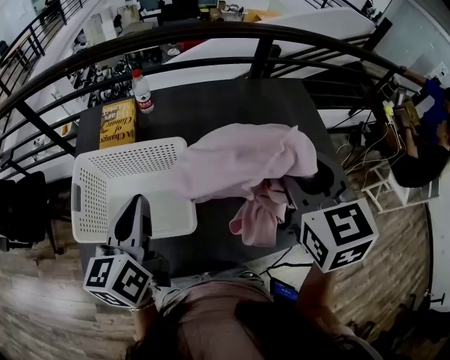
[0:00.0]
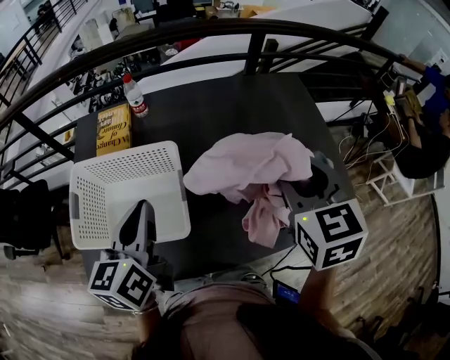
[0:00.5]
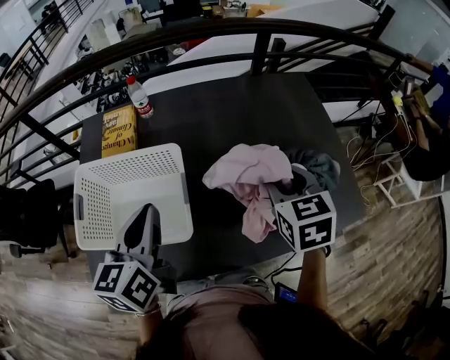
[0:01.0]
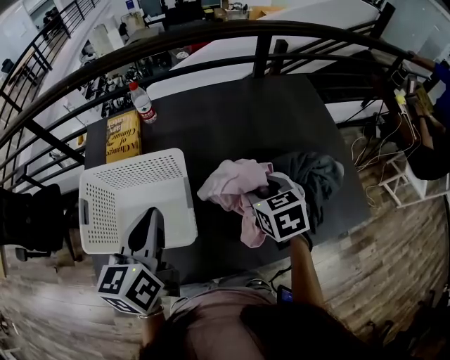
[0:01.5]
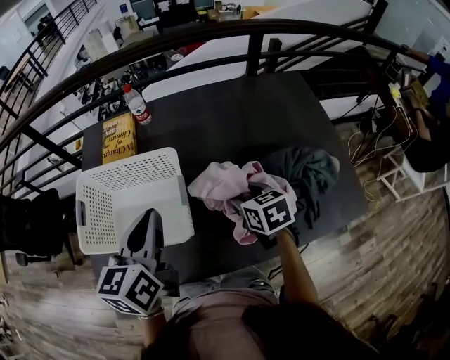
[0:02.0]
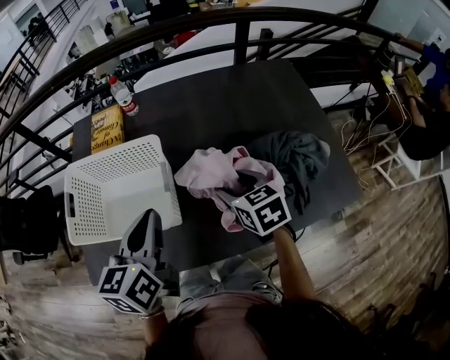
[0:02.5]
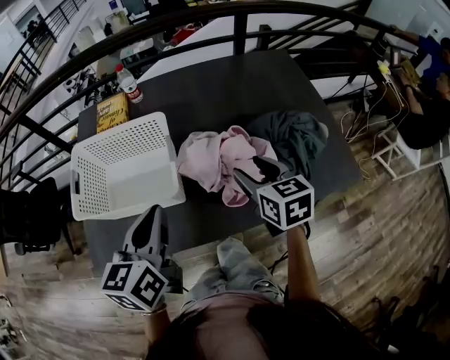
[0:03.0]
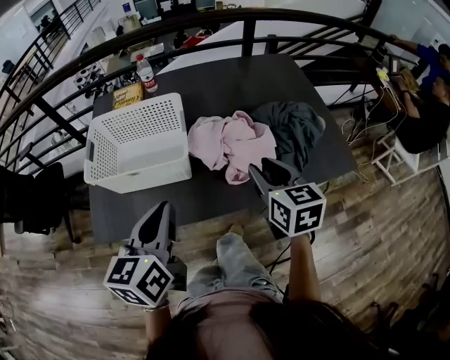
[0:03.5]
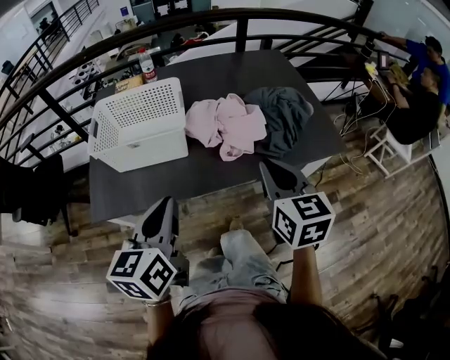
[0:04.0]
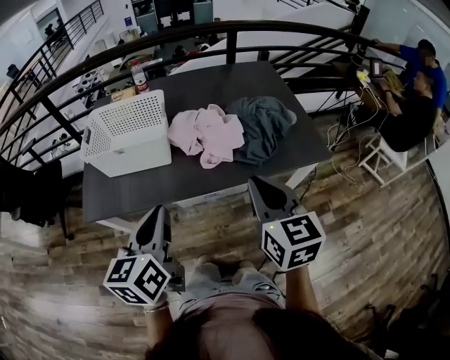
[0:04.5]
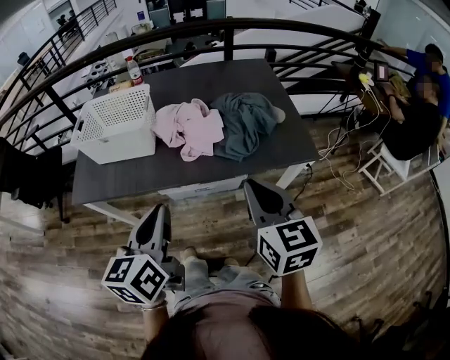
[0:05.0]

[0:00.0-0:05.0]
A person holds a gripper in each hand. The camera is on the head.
0:00.0 to 0:02.5: The right gripper is displaced downward by approximately 20 cm, and changes its angle by approximately 30 degrees. The left gripper moves to the right, approximately 10 cm.
0:02.5 to 0:05.0: The right gripper moves backward, to the right and upward, some 40 cm, changes its angle by approximately 30 degrees, and closes its fingers; the left gripper shifts approximately 40 cm backward and to the right.

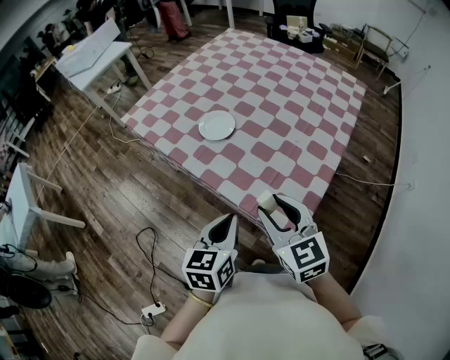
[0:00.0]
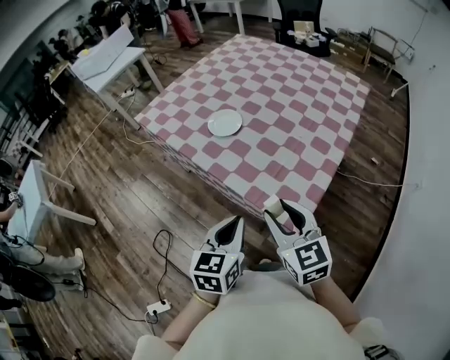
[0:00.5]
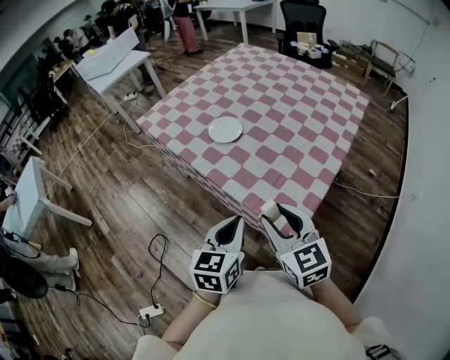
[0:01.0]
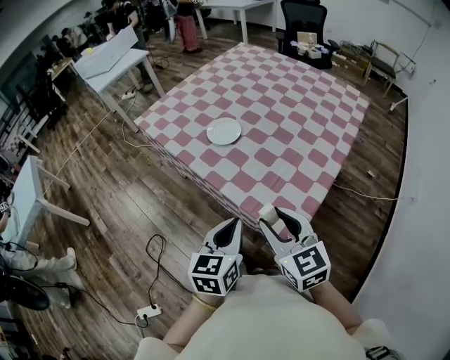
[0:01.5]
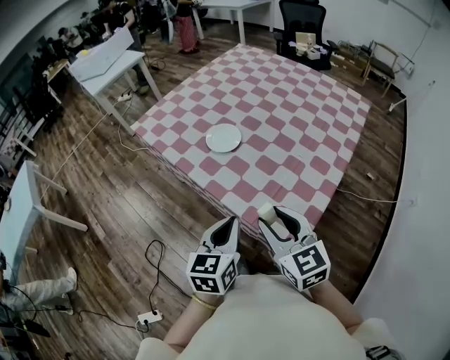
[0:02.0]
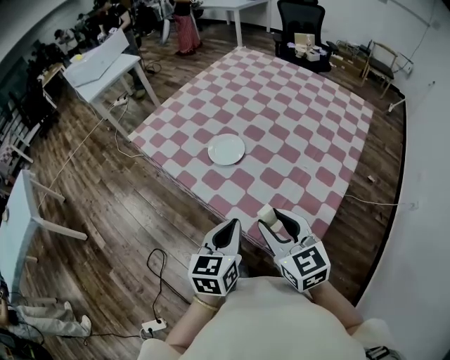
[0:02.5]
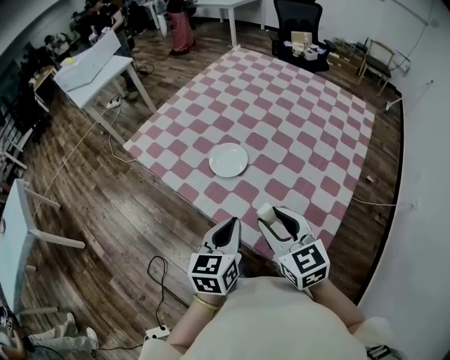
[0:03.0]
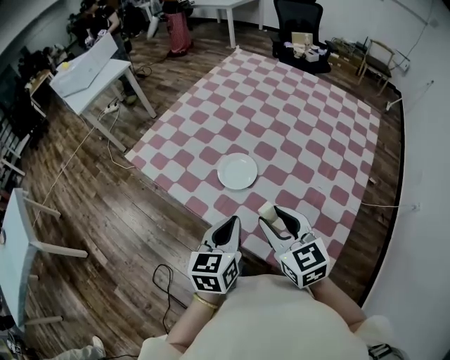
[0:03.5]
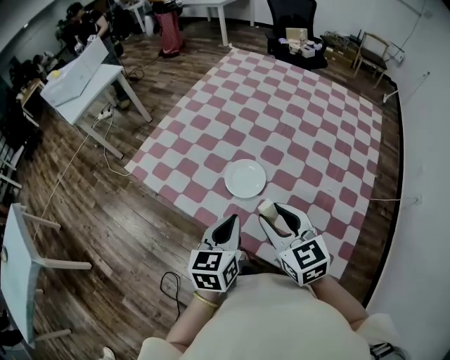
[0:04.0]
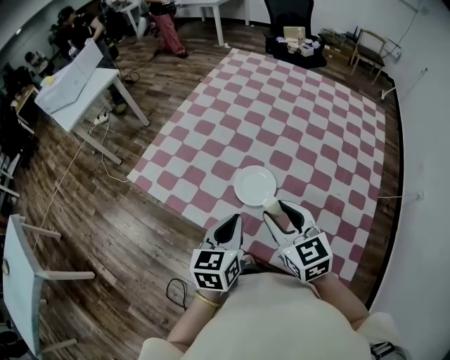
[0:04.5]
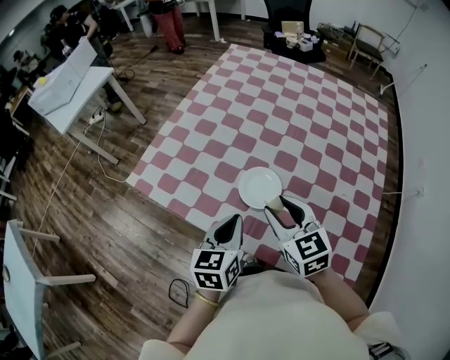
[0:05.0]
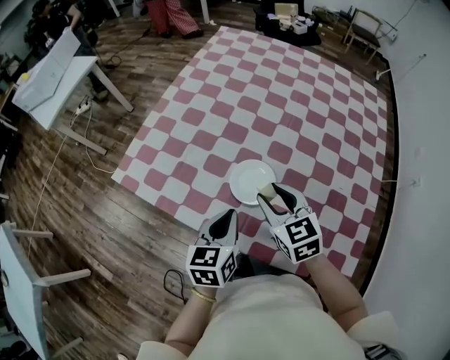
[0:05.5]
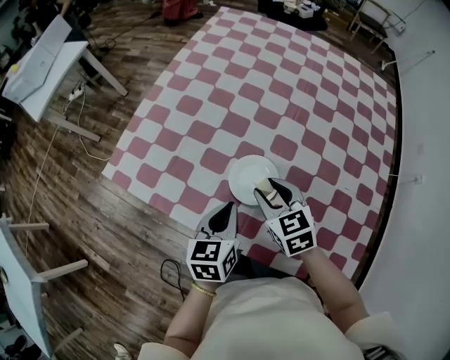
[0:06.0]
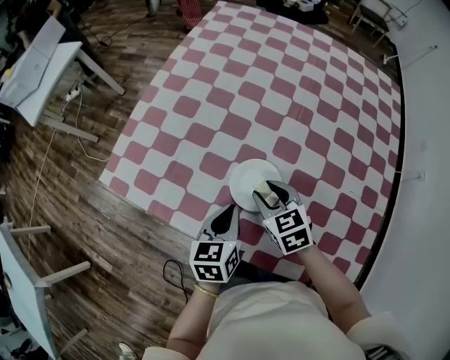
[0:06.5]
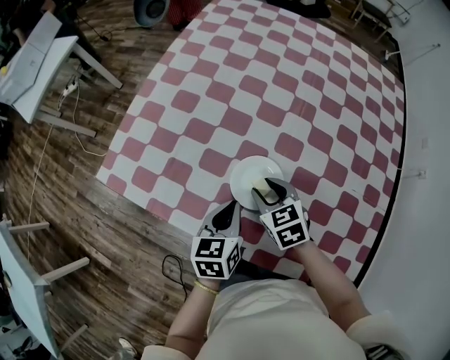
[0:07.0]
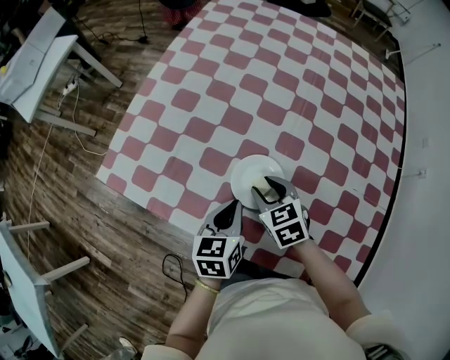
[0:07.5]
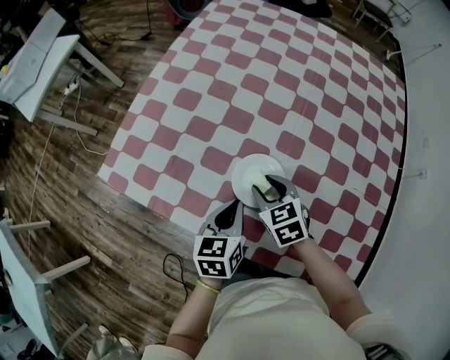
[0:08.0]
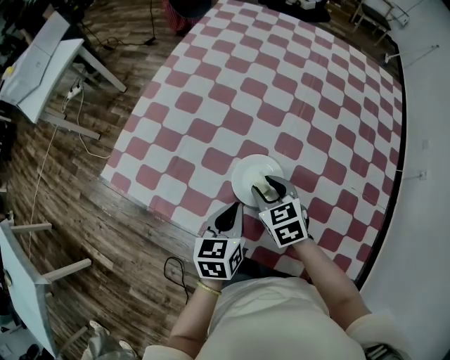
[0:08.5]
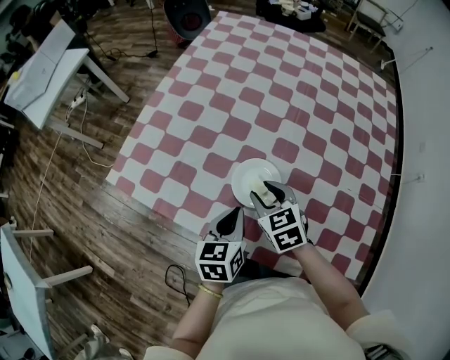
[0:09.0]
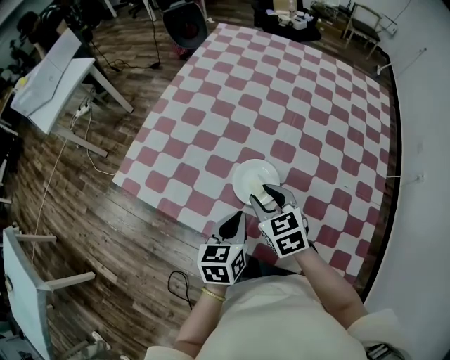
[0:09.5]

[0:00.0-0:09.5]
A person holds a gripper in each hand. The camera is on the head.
0:02.0 to 0:04.0: Both grippers move forward and to the left, approximately 25 cm.
0:04.0 to 0:05.5: The grippers both shift forward and downward by some 10 cm.
0:05.5 to 0:07.5: Both grippers travel together downward and forward, approximately 15 cm.
0:07.5 to 0:09.5: The right gripper travels upward by some 10 cm; the left gripper travels backward by roughly 5 cm.

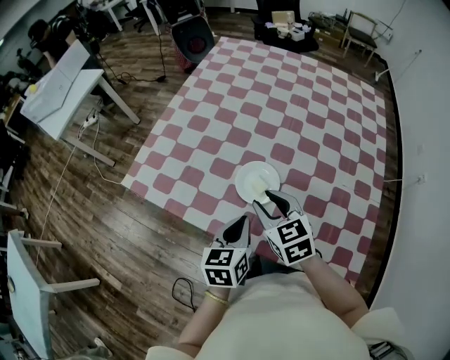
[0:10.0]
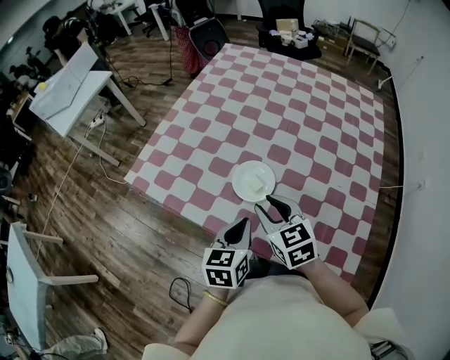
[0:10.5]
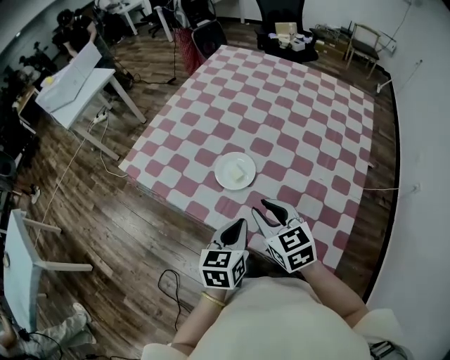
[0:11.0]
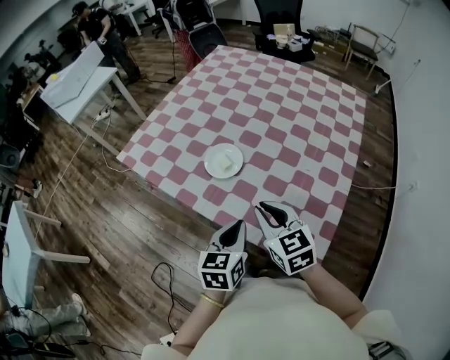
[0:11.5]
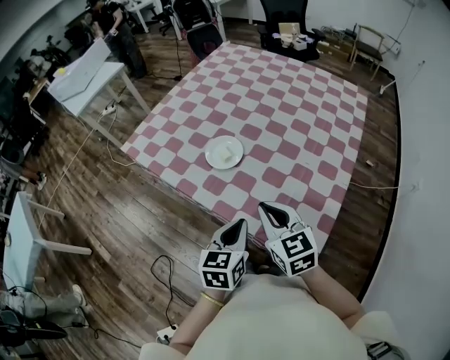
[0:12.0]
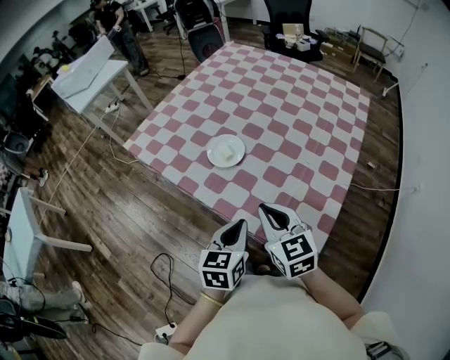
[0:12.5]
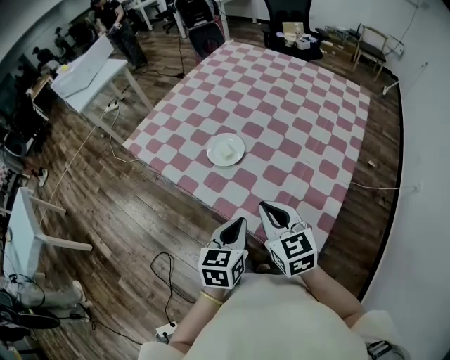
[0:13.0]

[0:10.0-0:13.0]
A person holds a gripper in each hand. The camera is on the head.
0:10.0 to 0:11.5: The two grippers go approximately 20 cm backward and to the right. The right gripper closes its fingers.
0:11.5 to 0:13.0: The grippers make only small movements.

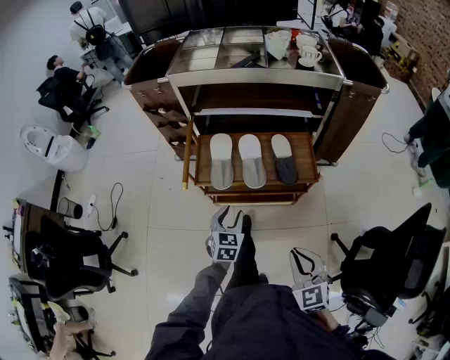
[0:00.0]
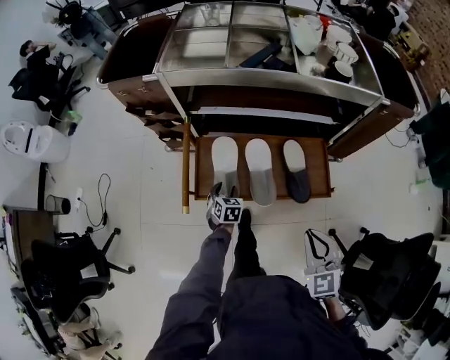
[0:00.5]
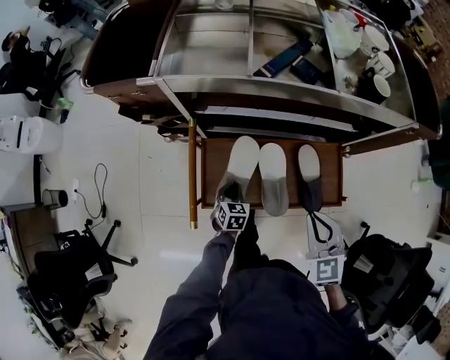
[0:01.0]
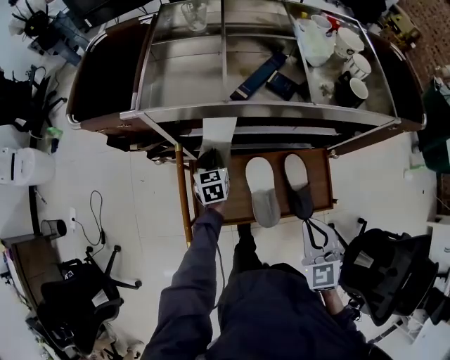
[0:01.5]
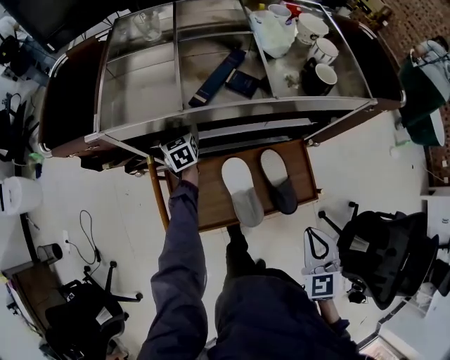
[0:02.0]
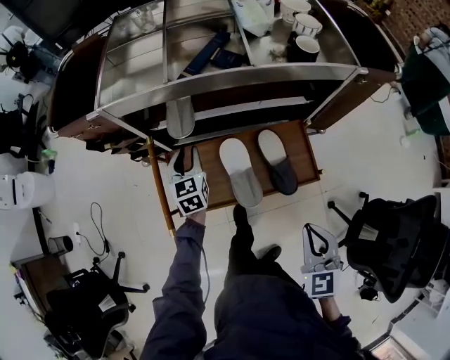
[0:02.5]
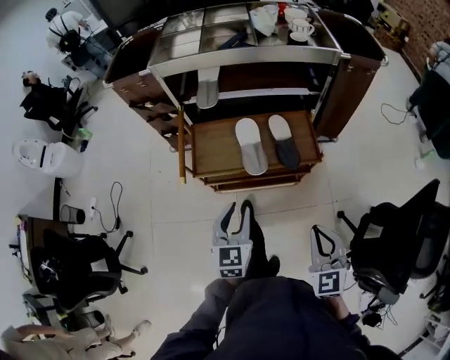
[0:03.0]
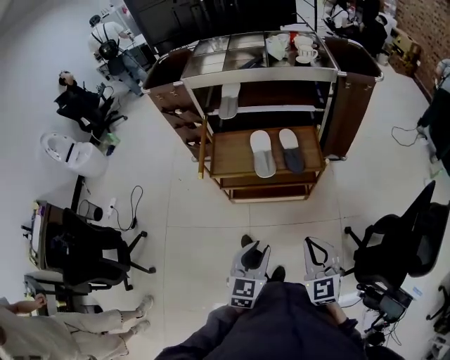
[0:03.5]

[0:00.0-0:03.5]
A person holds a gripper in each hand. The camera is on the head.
0:00.0 to 0:02.0: The left gripper moves forward, about 60 cm, and changes its angle by some 20 degrees. Meanwhile the right gripper heads forward, covering about 35 cm, and rotates about 20 degrees.
0:02.0 to 0:03.5: The left gripper shifts approximately 80 cm backward, and rotates approximately 20 degrees; the right gripper goes roughly 40 cm backward, and rotates approximately 20 degrees.

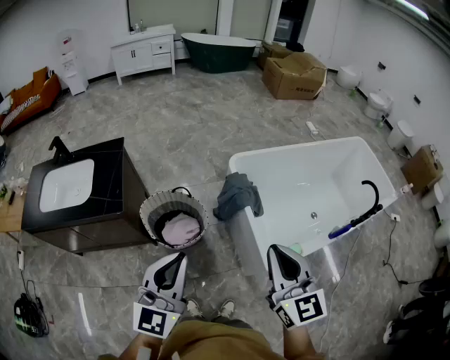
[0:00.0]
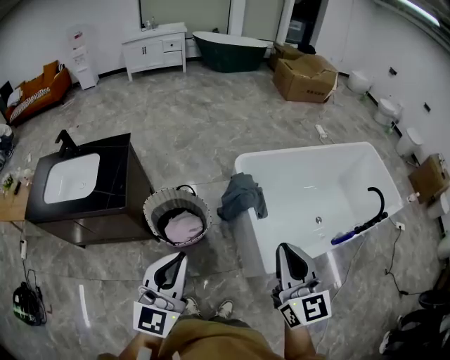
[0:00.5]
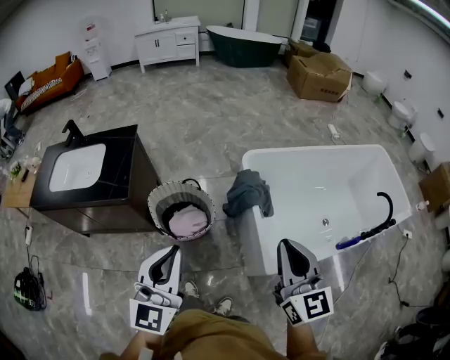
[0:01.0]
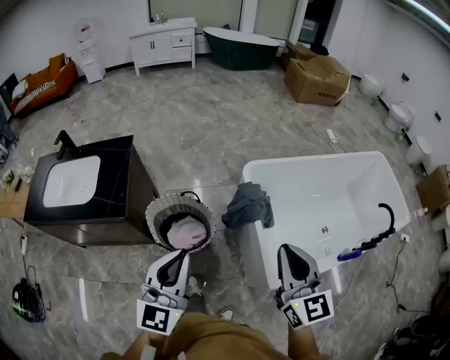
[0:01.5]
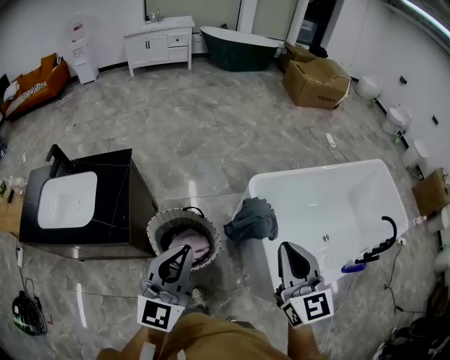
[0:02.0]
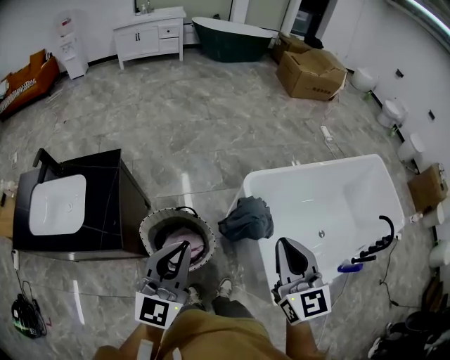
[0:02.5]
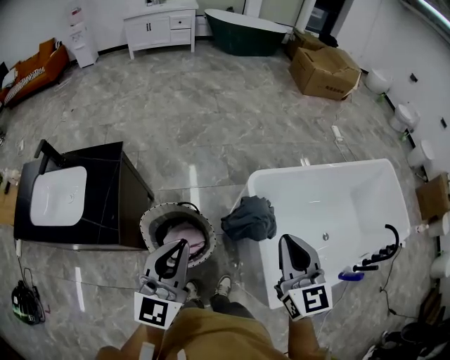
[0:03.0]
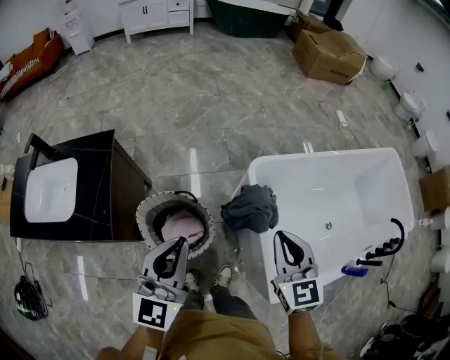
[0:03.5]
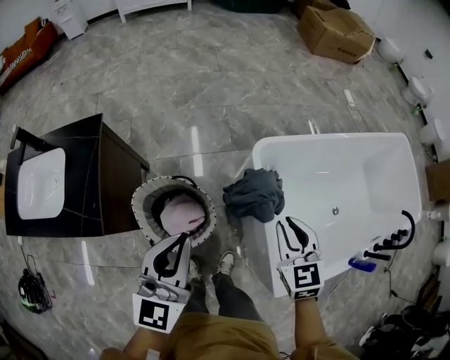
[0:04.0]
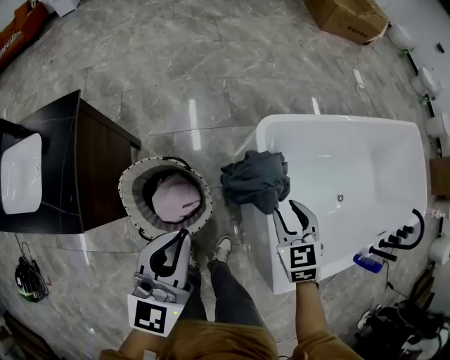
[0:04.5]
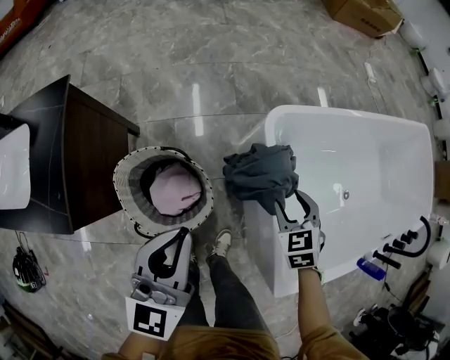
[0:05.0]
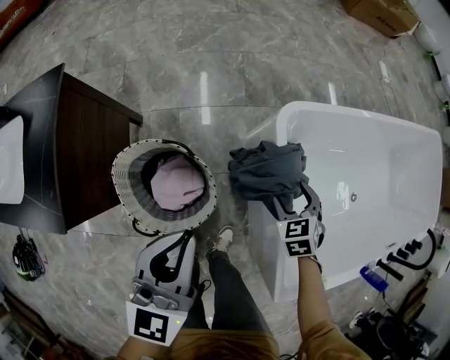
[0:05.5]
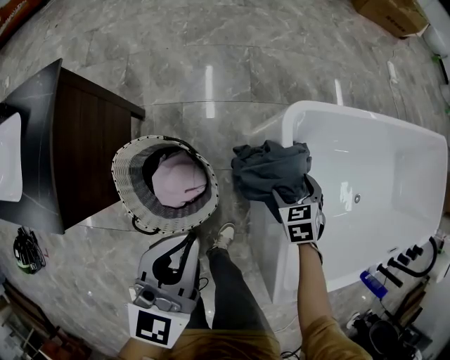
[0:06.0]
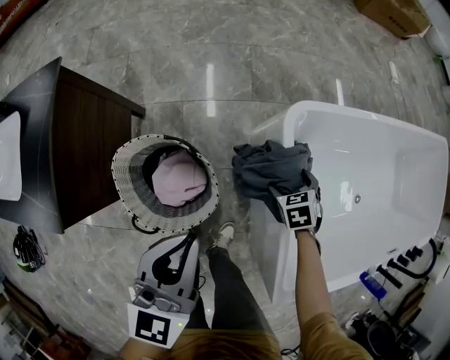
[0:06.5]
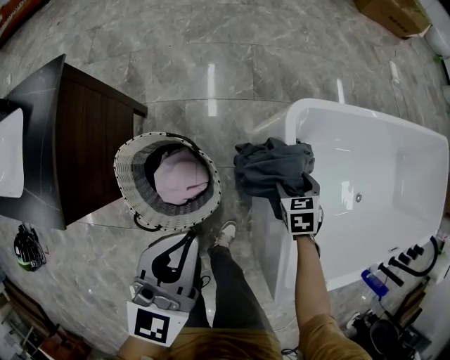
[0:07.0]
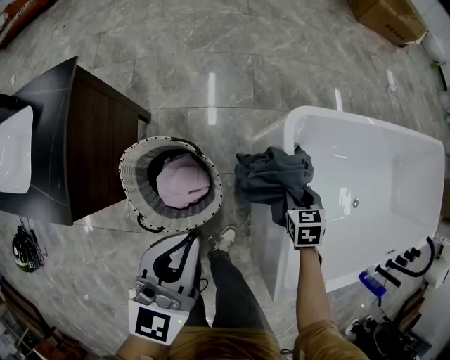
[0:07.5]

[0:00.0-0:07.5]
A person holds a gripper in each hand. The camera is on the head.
0:00.0 to 0:02.0: Both grippers travel together forward, some 20 cm.
0:02.0 to 0:04.0: The left gripper is displaced forward and downward by about 15 cm, while the right gripper shifts about 25 cm downward and forward, and swivels roughly 30 degrees.
0:04.0 to 0:05.5: The right gripper goes approximately 30 cm downward, turns by about 30 degrees, and opens up. The left gripper travels downward and forward by roughly 15 cm.
0:05.5 to 0:07.5: The right gripper closes its fingers.
